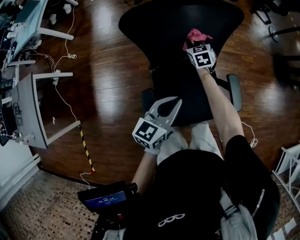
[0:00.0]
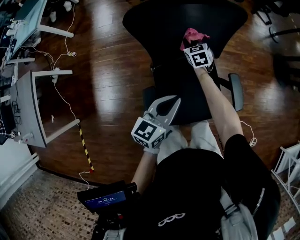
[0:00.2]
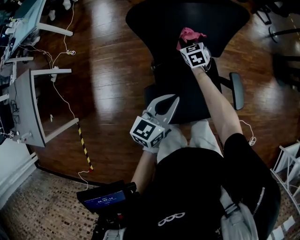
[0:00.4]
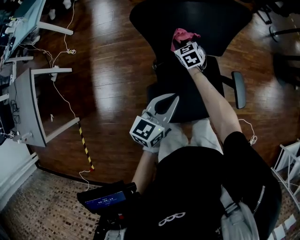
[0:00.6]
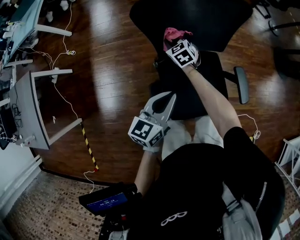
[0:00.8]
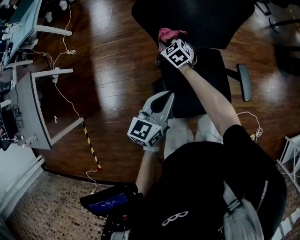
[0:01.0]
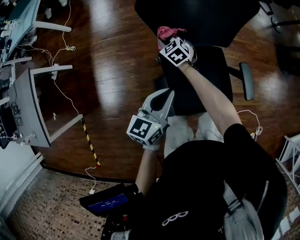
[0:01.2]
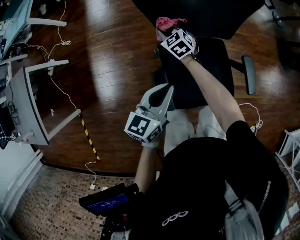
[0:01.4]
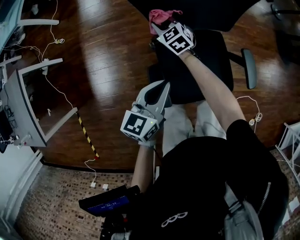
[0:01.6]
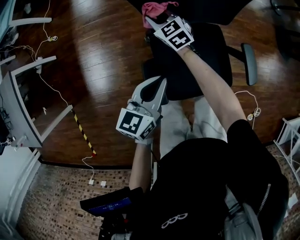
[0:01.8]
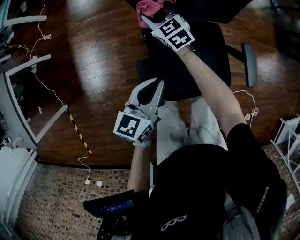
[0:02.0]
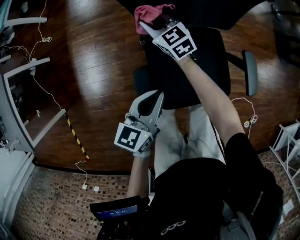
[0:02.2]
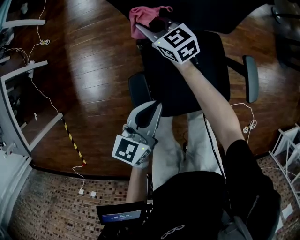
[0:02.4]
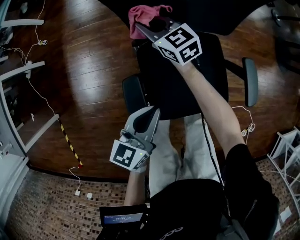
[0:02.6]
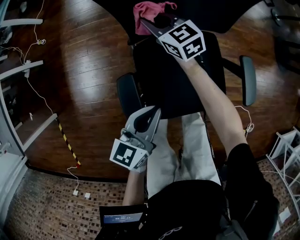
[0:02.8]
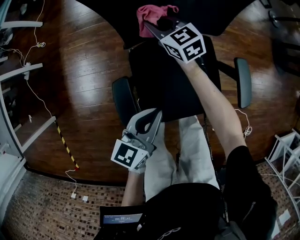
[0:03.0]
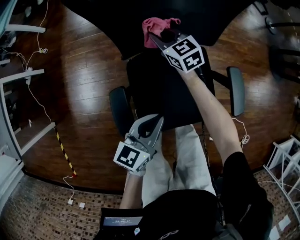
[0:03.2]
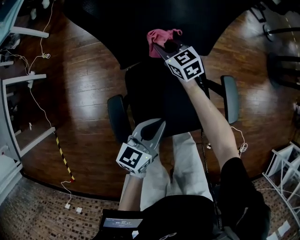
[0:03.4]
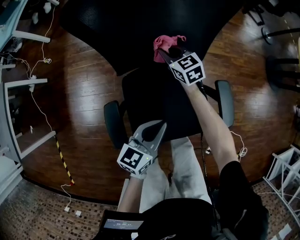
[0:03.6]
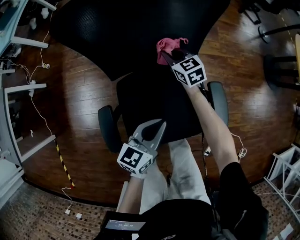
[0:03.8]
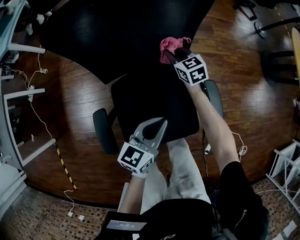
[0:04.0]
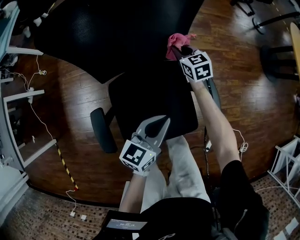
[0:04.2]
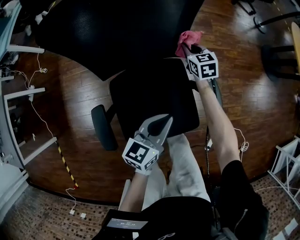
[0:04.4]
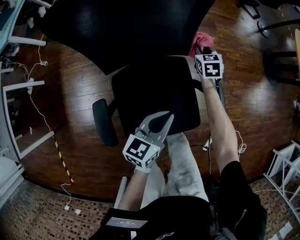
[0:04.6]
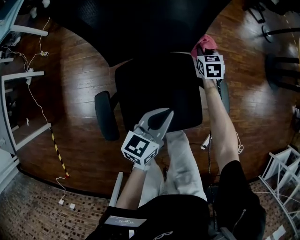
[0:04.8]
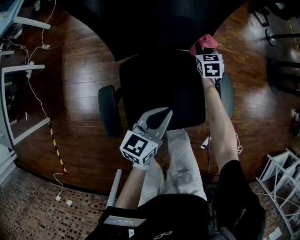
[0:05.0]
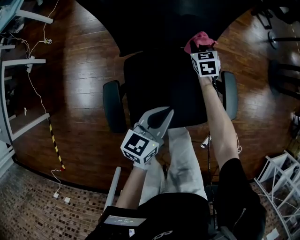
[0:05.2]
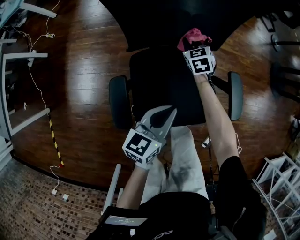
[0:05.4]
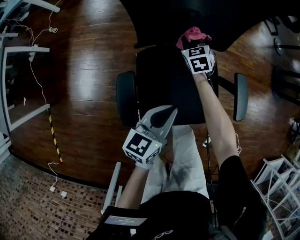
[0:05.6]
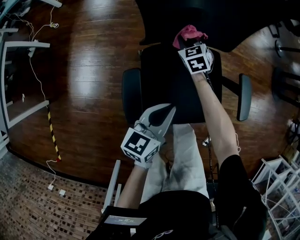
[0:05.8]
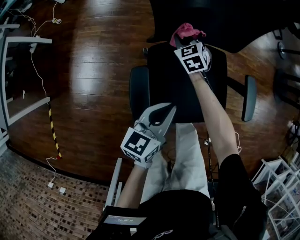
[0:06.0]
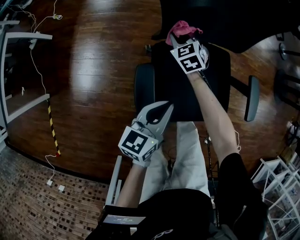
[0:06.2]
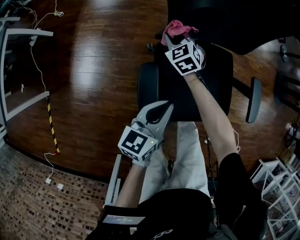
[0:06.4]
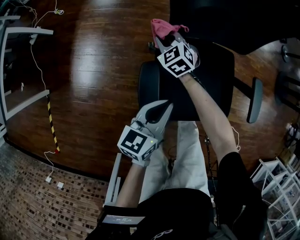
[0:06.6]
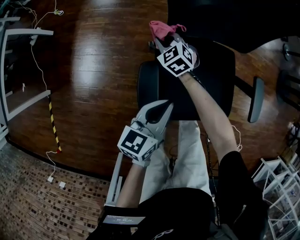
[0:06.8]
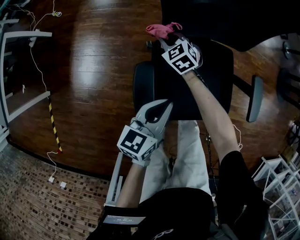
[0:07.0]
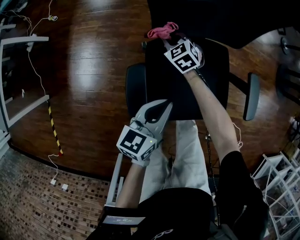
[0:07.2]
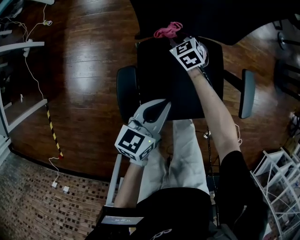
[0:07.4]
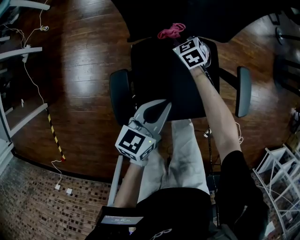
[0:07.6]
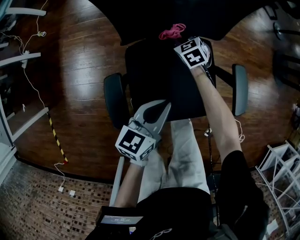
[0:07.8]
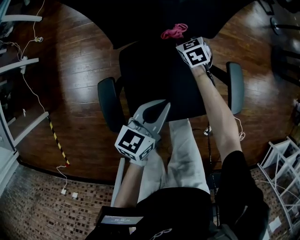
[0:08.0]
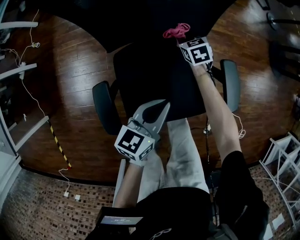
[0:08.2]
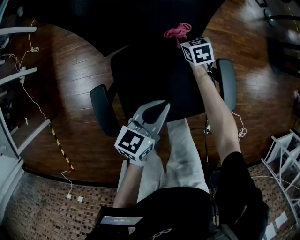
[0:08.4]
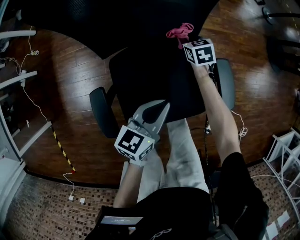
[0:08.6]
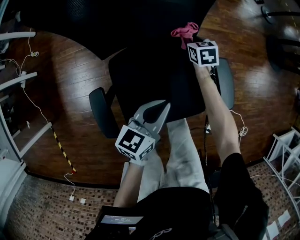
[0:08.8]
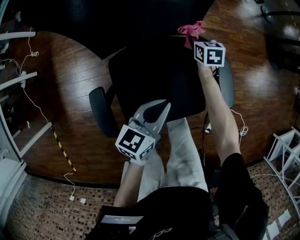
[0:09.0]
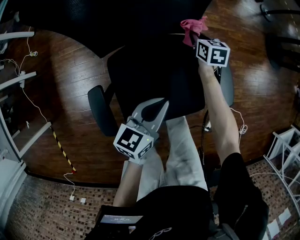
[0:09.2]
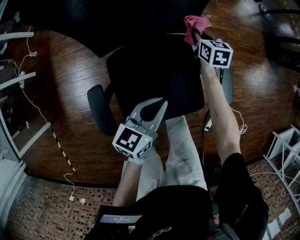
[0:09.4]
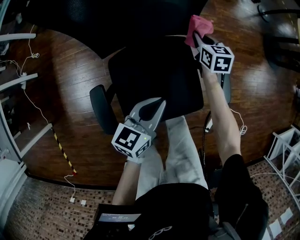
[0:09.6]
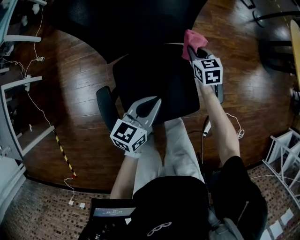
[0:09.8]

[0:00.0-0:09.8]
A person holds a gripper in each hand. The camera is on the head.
0:00.0 to 0:01.4: The left gripper shifts about 10 cm to the left, while the right gripper goes approximately 20 cm to the left, and changes its angle by some 20 degrees.
0:01.4 to 0:02.8: The left gripper heads downward, to the right and backward, covering approximately 15 cm, while the right gripper shifts approximately 5 cm to the right, and rotates roughly 20 degrees.
0:02.8 to 0:04.2: Both grippers move to the right, roughly 25 cm. The right gripper turns by approximately 20 degrees.
0:04.2 to 0:05.6: Both grippers travel together to the left and backward, roughly 15 cm.
0:05.6 to 0:07.0: The right gripper shifts approximately 20 cm to the left, and swivels approximately 20 degrees. Meanwhile the left gripper heads to the left, covering roughly 10 cm.
0:07.0 to 0:08.4: The left gripper heads to the right, covering about 15 cm. The right gripper moves to the right, approximately 30 cm, and turns by roughly 40 degrees.
0:08.4 to 0:09.8: The right gripper goes roughly 15 cm upward and to the right.

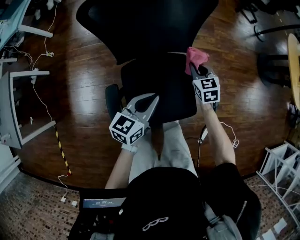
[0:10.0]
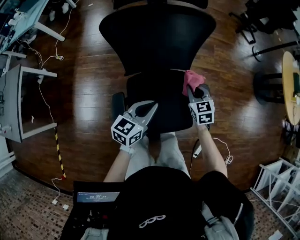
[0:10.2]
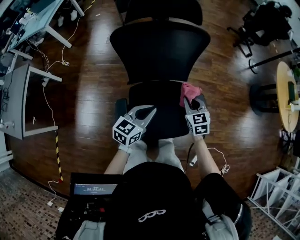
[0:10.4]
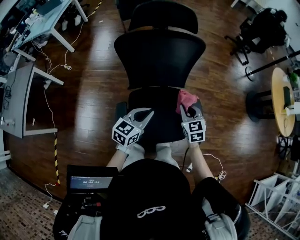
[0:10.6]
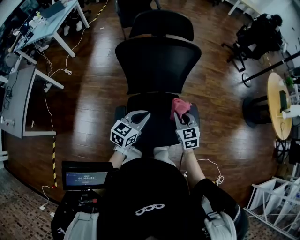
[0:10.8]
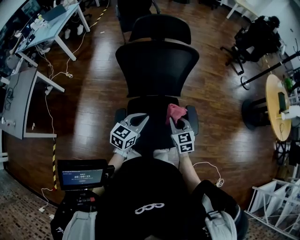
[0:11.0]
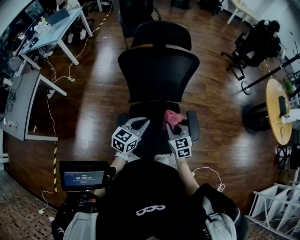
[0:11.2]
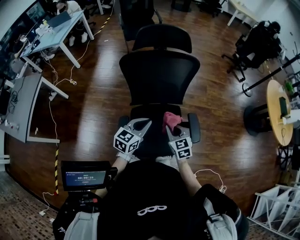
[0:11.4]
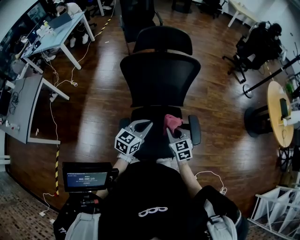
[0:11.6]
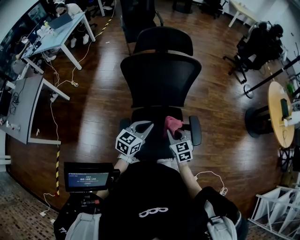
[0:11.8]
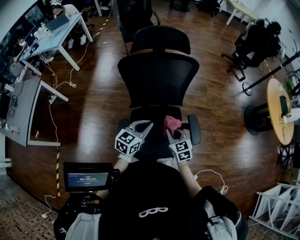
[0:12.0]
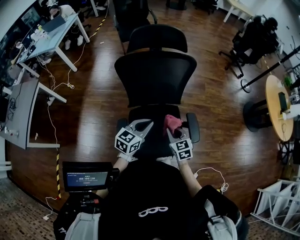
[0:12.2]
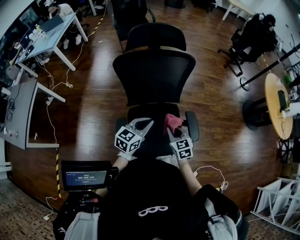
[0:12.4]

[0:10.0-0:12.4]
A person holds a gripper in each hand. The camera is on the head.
0:10.0 to 0:11.2: The right gripper goes about 25 cm backward, upward and to the left. The left gripper is displaced upward by approximately 10 cm.
0:11.2 to 0:12.4: The grippers move only a little.

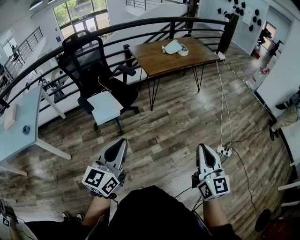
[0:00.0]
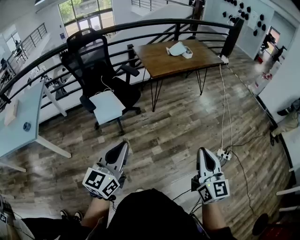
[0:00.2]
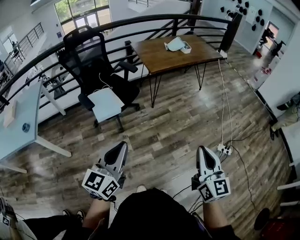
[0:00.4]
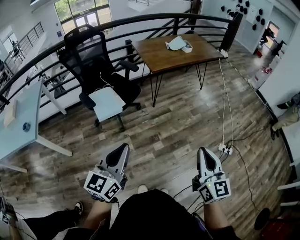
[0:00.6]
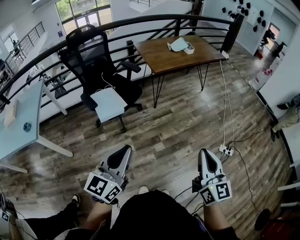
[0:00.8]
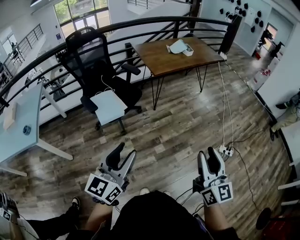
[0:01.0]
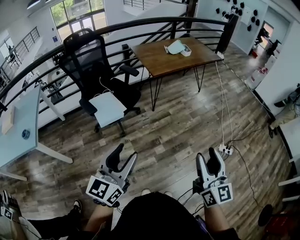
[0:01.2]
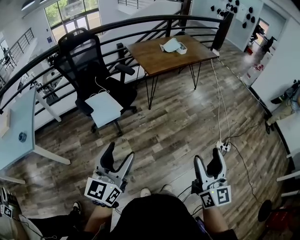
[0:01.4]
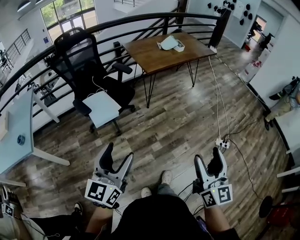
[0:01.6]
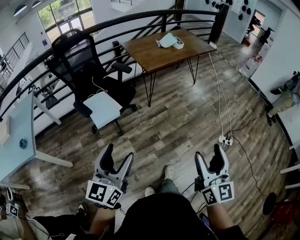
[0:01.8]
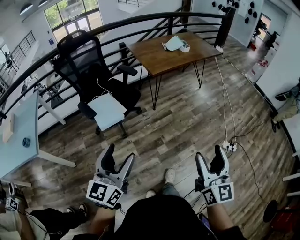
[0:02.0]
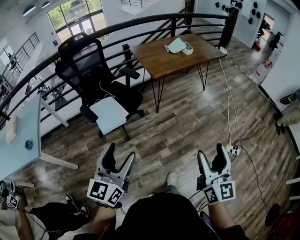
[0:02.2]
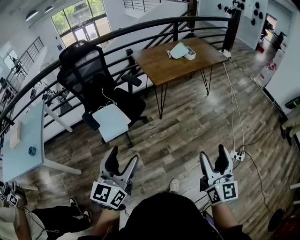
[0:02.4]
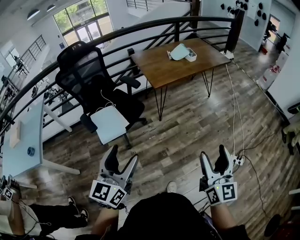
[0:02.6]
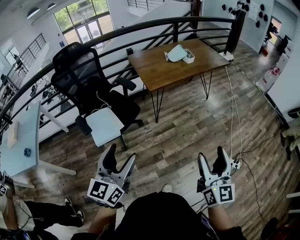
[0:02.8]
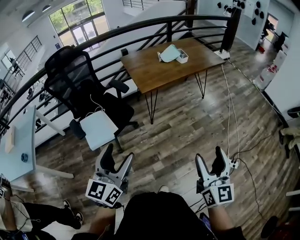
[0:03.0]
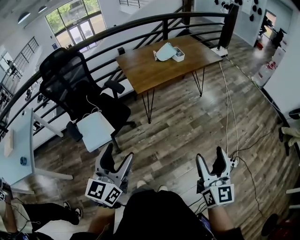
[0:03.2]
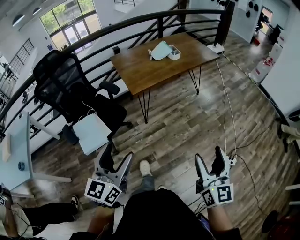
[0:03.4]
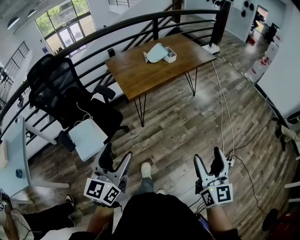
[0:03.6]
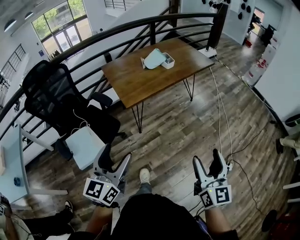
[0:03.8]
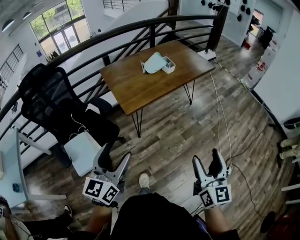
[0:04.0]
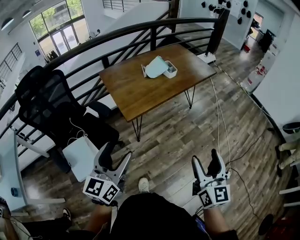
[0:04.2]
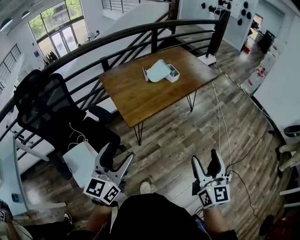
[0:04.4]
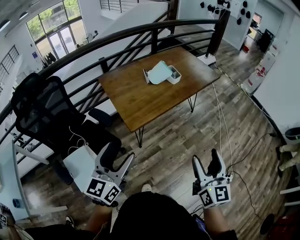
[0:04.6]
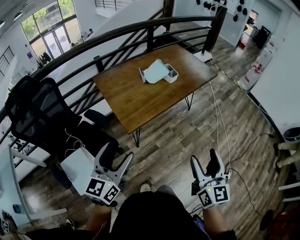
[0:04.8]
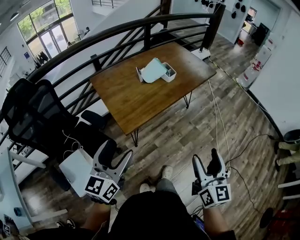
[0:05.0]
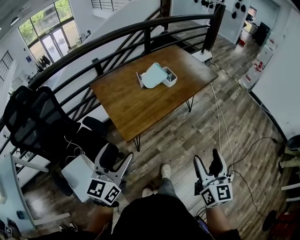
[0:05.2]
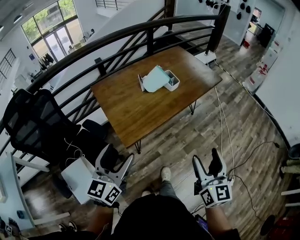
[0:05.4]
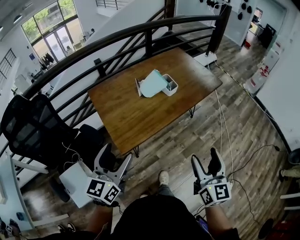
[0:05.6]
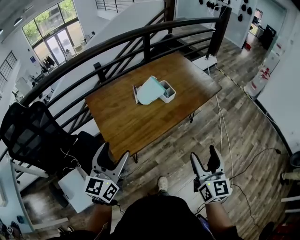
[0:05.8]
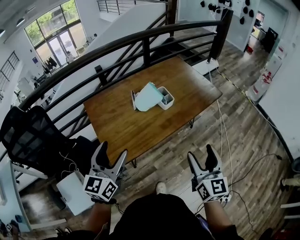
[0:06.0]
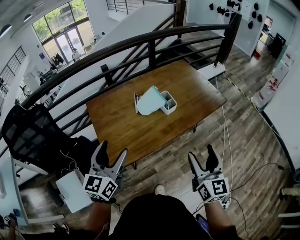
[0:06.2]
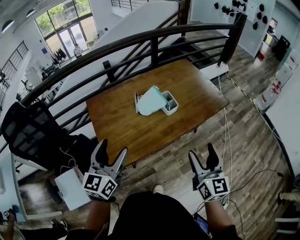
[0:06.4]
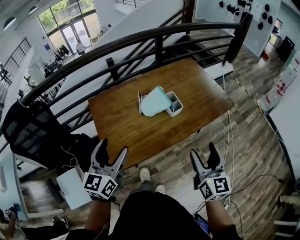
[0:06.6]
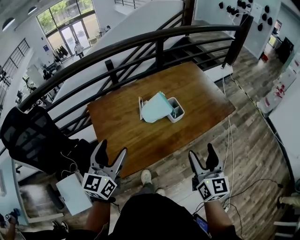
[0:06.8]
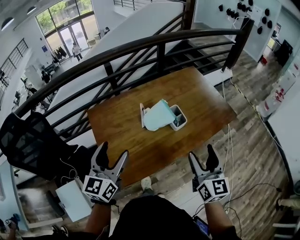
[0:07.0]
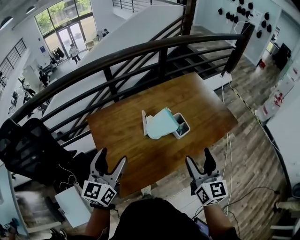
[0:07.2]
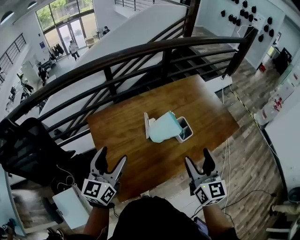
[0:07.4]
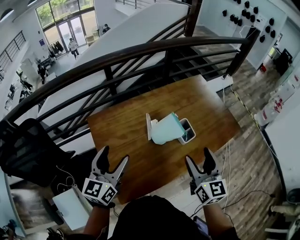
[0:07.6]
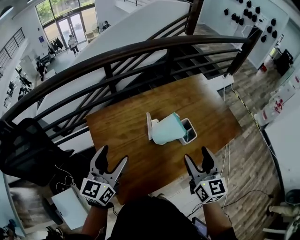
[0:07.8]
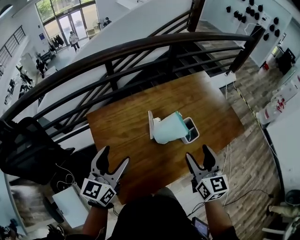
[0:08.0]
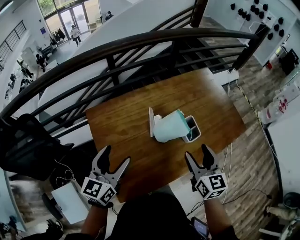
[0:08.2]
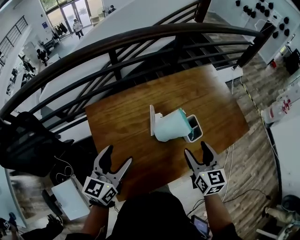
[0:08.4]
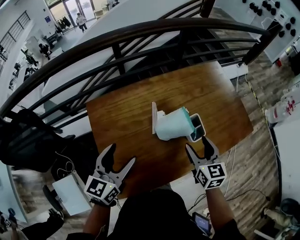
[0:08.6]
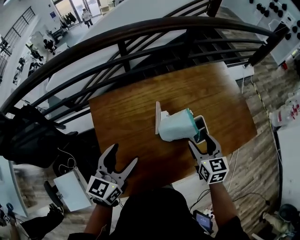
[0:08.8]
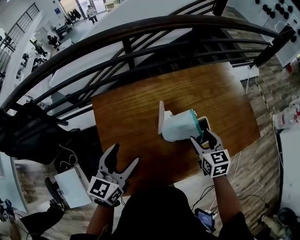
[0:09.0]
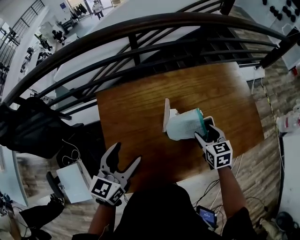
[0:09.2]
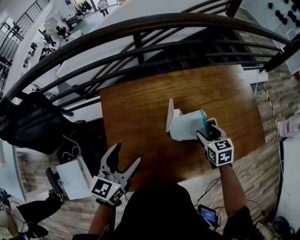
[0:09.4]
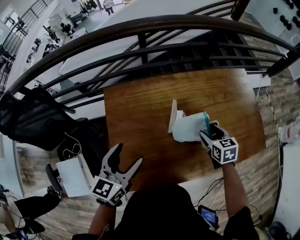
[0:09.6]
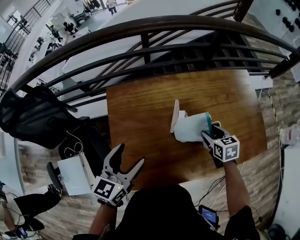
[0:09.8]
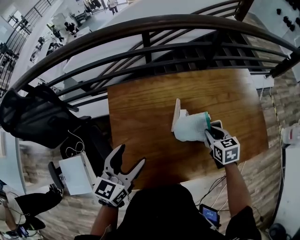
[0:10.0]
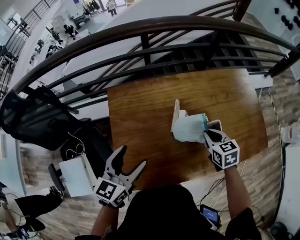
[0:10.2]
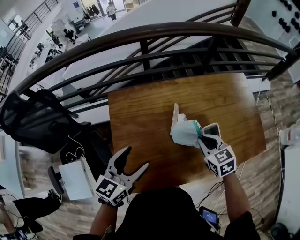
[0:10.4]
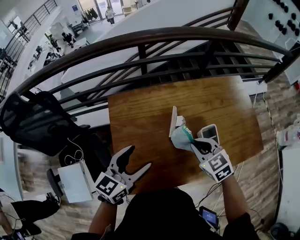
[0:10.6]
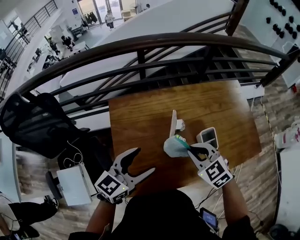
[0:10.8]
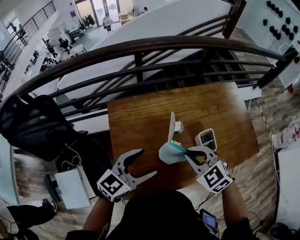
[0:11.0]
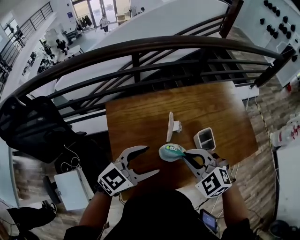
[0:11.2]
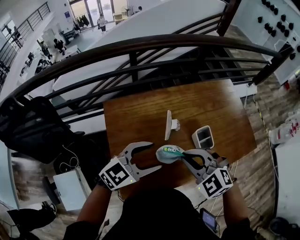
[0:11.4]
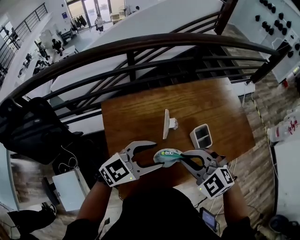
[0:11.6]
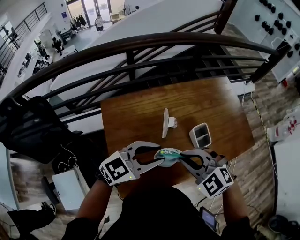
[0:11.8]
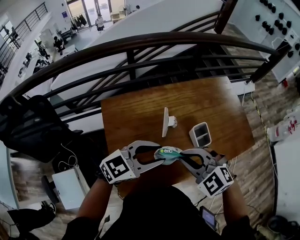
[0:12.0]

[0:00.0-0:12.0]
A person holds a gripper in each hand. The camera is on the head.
0:00.0 to 0:01.6: Both grippers move to the left, roughly 5 cm. The right gripper opens its fingers. The left gripper opens up.
0:01.6 to 0:03.0: Both grippers travel together forward and to the right, roughly 25 cm.
0:03.0 to 0:04.4: The grippers both shift forward by roughly 25 cm.
0:04.4 to 0:06.0: The two grippers go some 30 cm forward.
0:06.0 to 0:07.6: Both grippers travel together forward and to the left, approximately 25 cm.
0:07.6 to 0:09.0: The left gripper shifts roughly 5 cm downward; the right gripper shifts approximately 20 cm downward and forward, and changes its angle by roughly 30 degrees.
0:09.0 to 0:10.4: The right gripper is displaced to the left by roughly 5 cm, swivels approximately 20 degrees, and closes its fingers.
0:10.4 to 0:12.0: The right gripper moves upward, backward and to the left, about 15 cm, and rotates around the line of its fingers by roughly 40 degrees, counterclockwise from behind. Meanwhile the left gripper goes approximately 10 cm to the right, swivels roughly 50 degrees, and closes its fingers.
